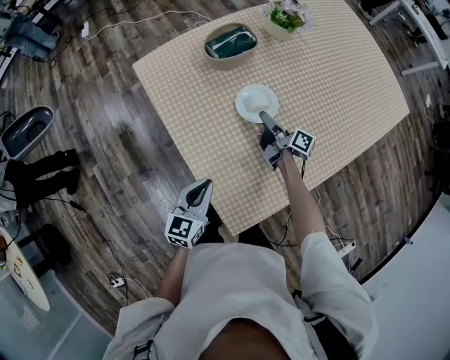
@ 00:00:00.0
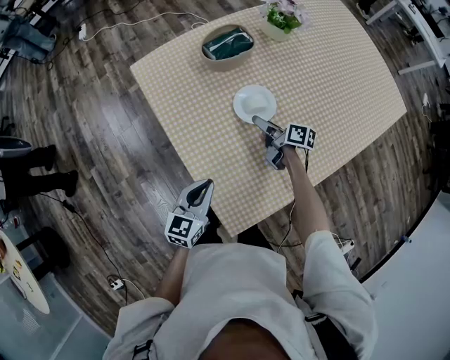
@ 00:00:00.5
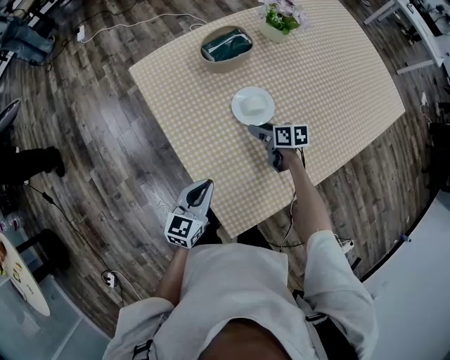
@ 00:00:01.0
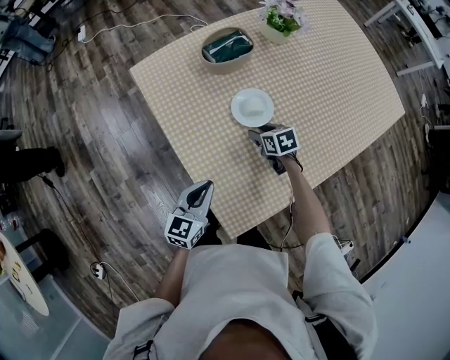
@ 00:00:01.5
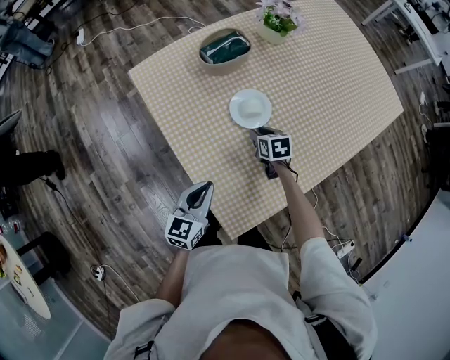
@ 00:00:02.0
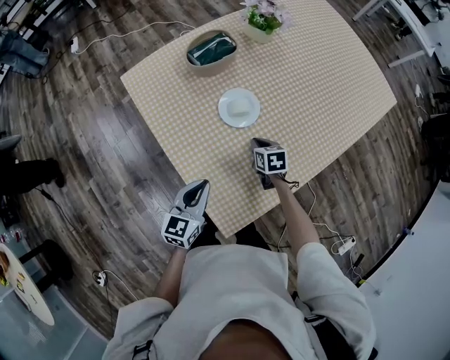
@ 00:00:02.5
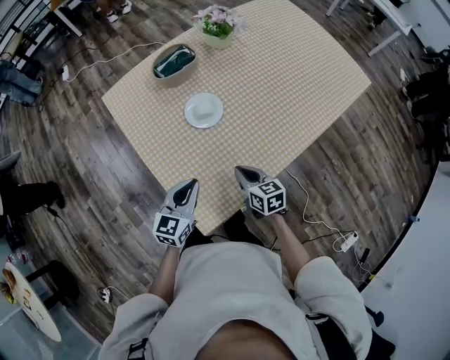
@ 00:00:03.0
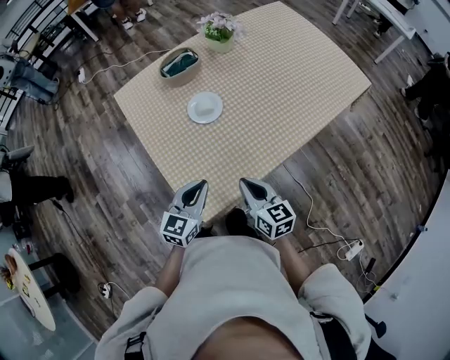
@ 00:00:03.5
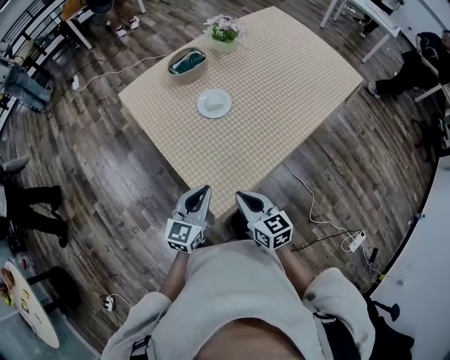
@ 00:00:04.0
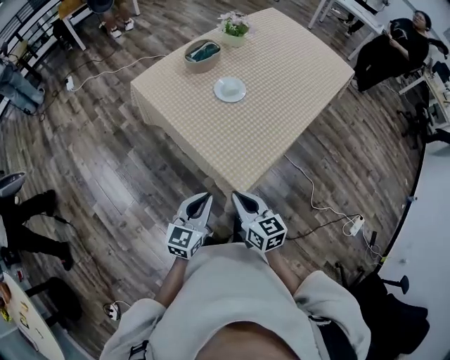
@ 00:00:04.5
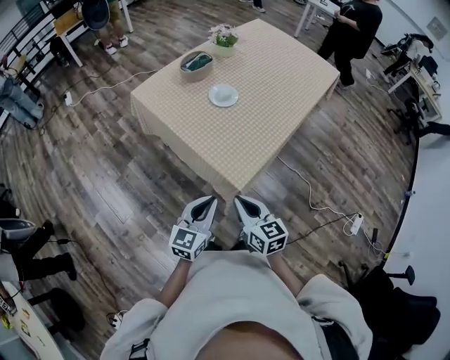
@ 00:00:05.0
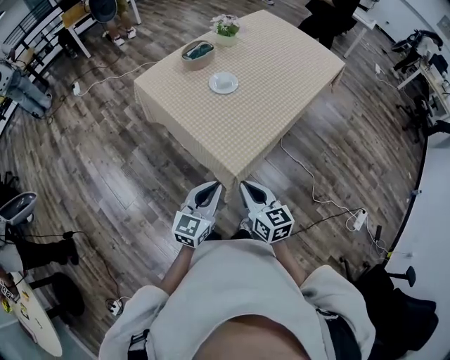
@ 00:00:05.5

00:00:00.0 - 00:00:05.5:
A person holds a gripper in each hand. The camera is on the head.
00:00:02.0 - 00:00:03.5: The left gripper moves roughly 15 cm.
00:00:03.5 - 00:00:05.5: The left gripper shifts by approximately 25 cm.

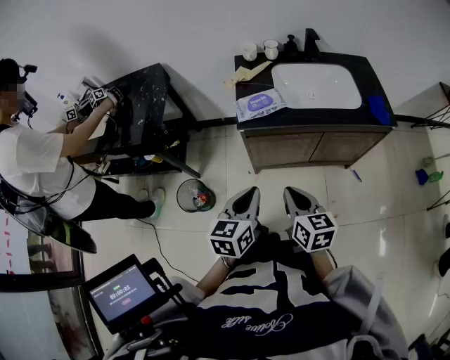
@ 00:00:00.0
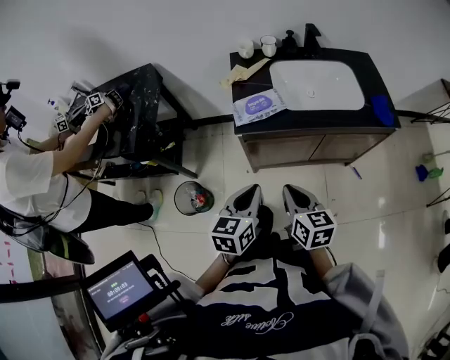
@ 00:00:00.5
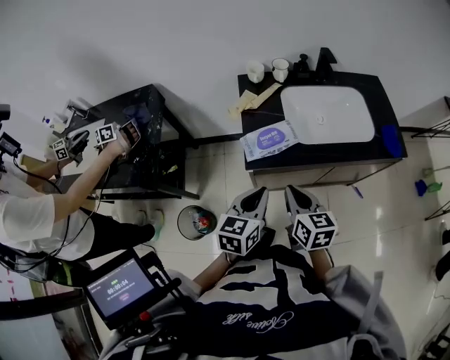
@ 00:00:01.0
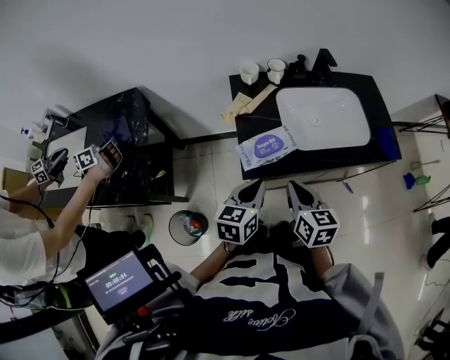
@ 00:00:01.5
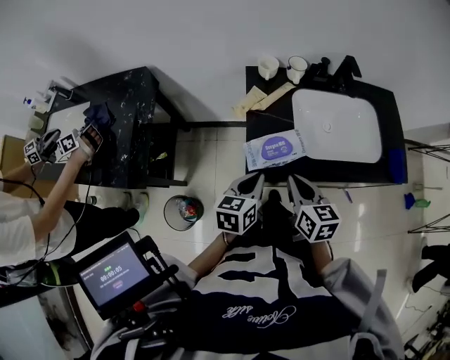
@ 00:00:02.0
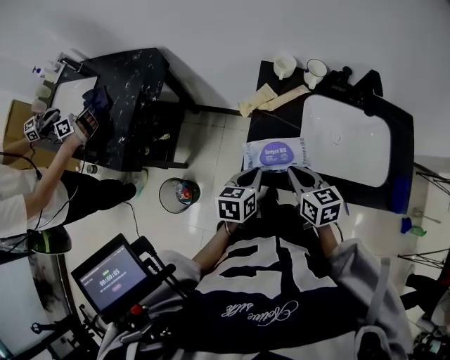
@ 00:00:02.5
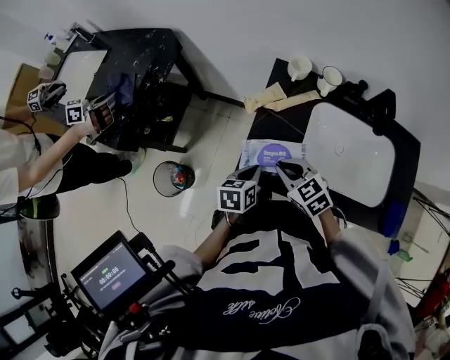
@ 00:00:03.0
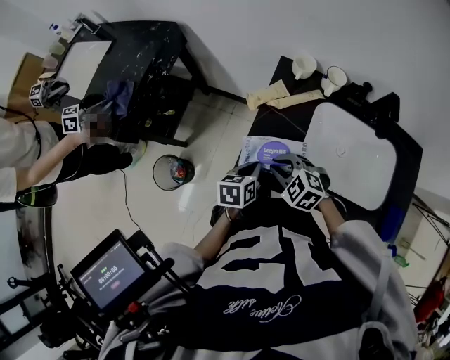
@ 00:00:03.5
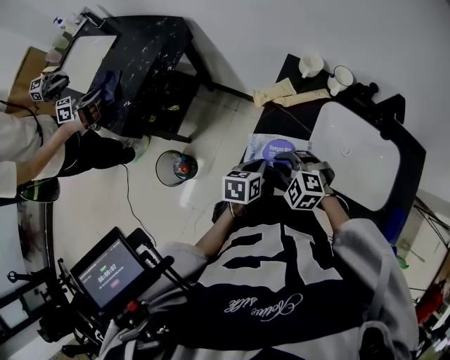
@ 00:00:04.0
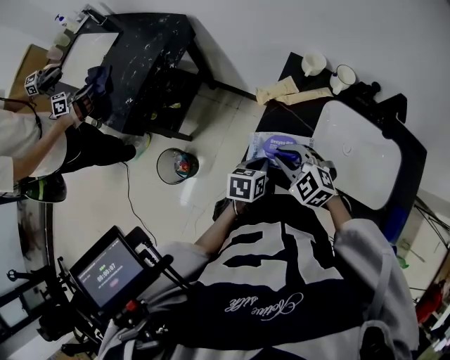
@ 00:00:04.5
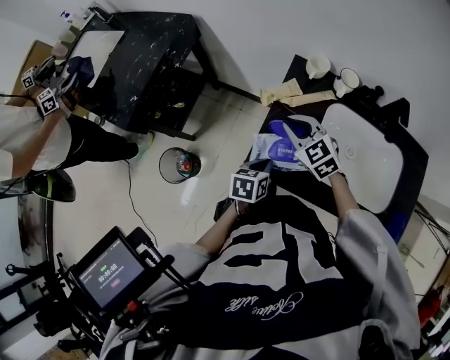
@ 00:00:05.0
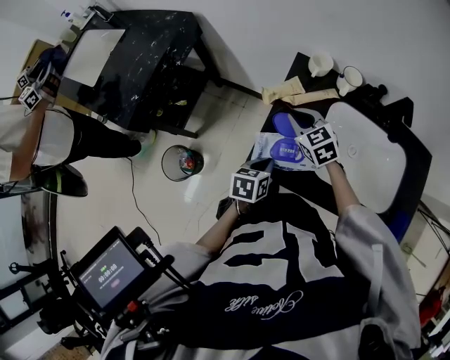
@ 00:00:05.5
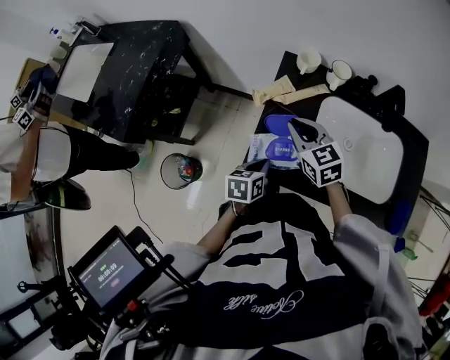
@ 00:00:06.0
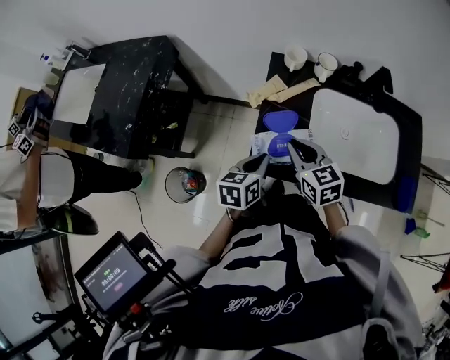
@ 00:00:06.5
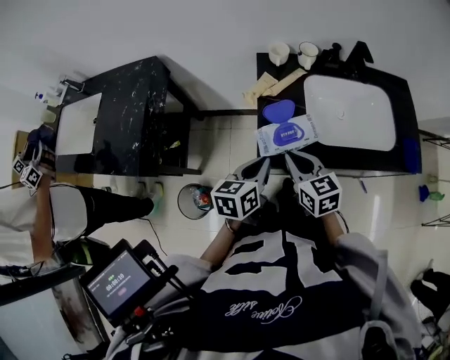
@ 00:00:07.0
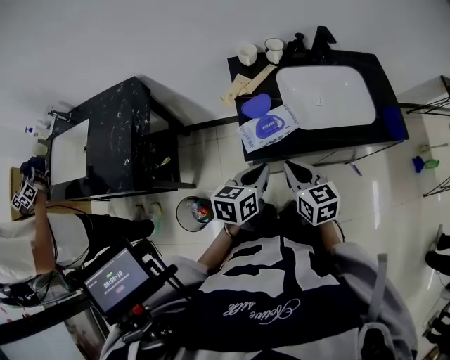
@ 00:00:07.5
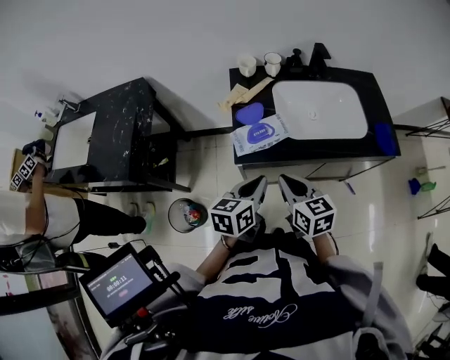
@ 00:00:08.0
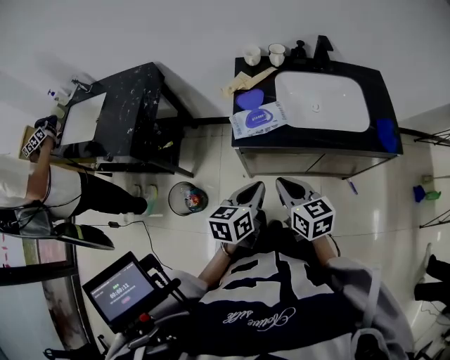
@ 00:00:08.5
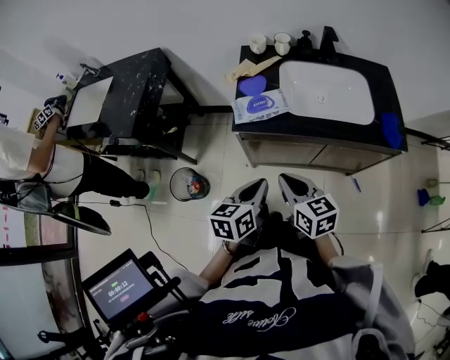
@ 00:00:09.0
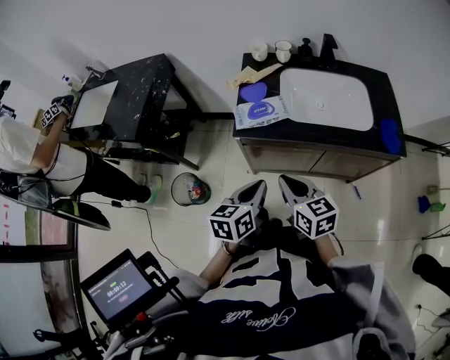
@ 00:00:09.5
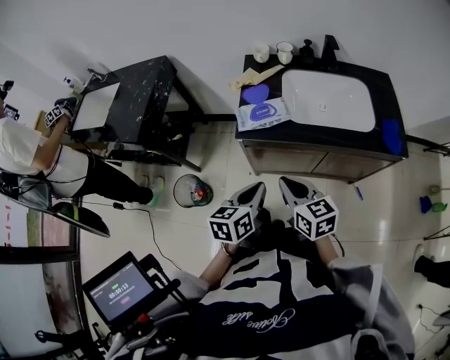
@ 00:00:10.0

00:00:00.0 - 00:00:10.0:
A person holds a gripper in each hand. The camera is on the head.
00:00:00.0 - 00:00:02.0: The grippers both shift forward by roughly 30 cm.
00:00:02.0 - 00:00:04.0: The two grippers go roughly 10 cm downward. The left gripper turns by about 30 degrees; the right gripper rotates around the line of its fingers by some 80 degrees, counterclockwise from behind.
00:00:04.0 - 00:00:06.0: The right gripper goes approximately 15 cm forward and upward, and rotates around the line of its fingers by roughly 50 degrees, clockwise from behind.
00:00:06.0 - 00:00:08.0: The left gripper shifts some 20 cm upward and backward, and turns by about 30 degrees. Meanwhile the right gripper is displaced backward by some 25 cm, and rotates about 30 degrees.
00:00:08.0 - 00:00:10.0: The two grippers go some 10 cm backward.

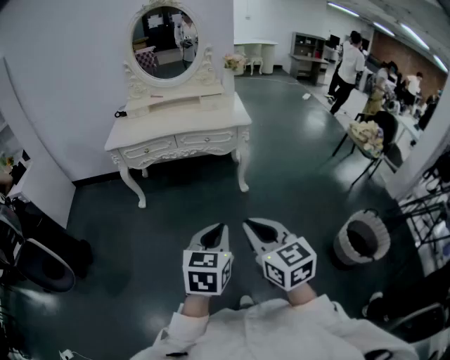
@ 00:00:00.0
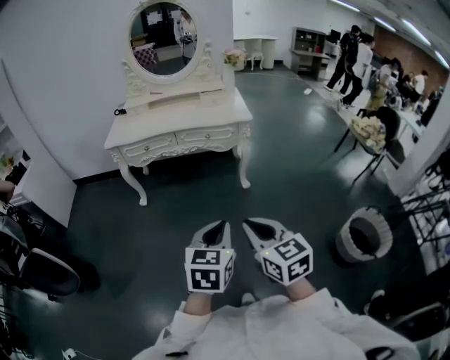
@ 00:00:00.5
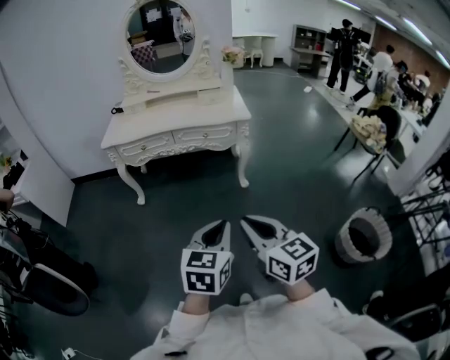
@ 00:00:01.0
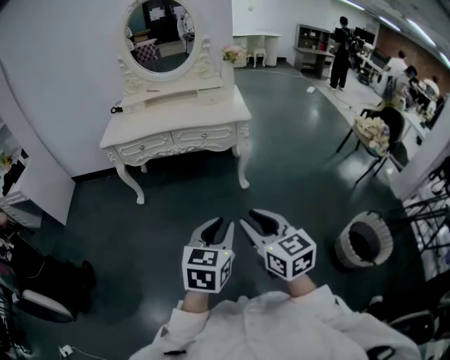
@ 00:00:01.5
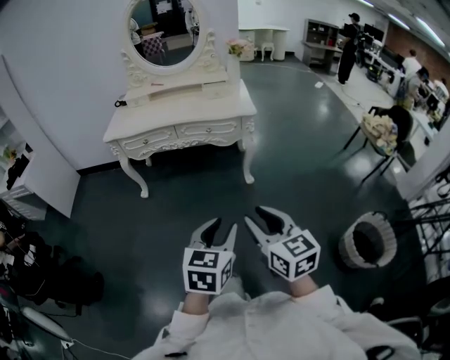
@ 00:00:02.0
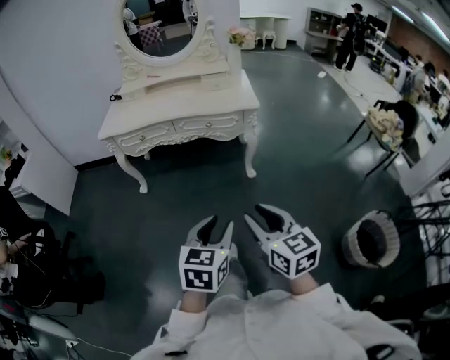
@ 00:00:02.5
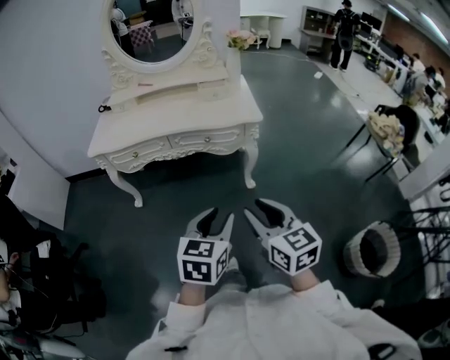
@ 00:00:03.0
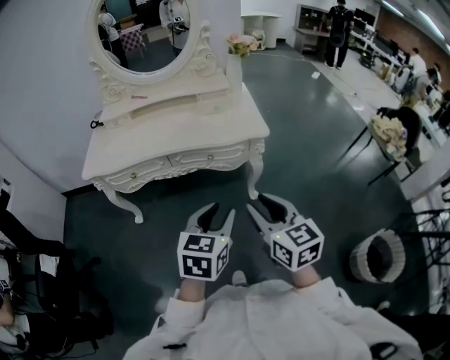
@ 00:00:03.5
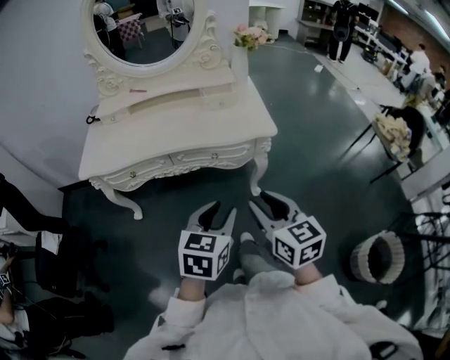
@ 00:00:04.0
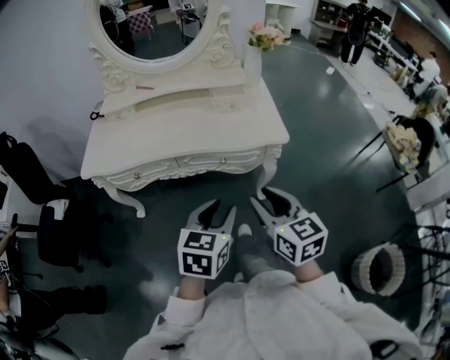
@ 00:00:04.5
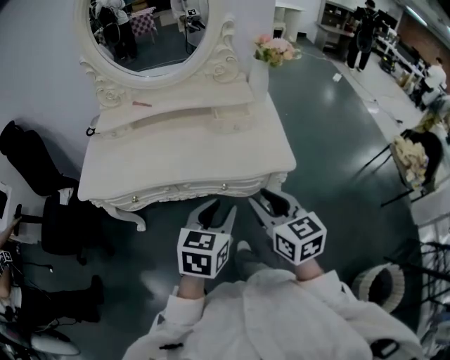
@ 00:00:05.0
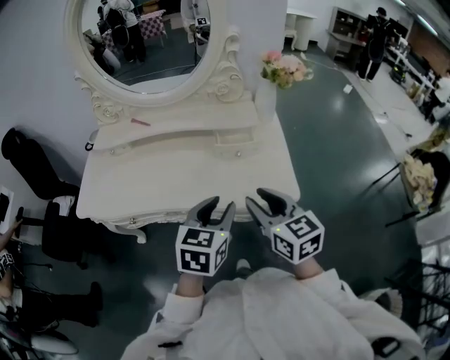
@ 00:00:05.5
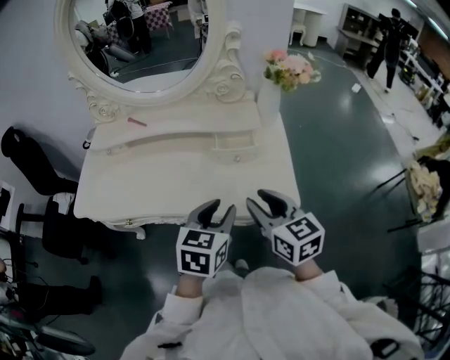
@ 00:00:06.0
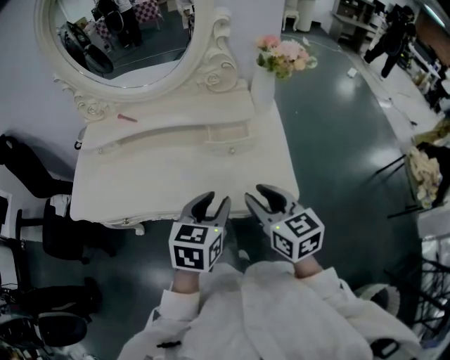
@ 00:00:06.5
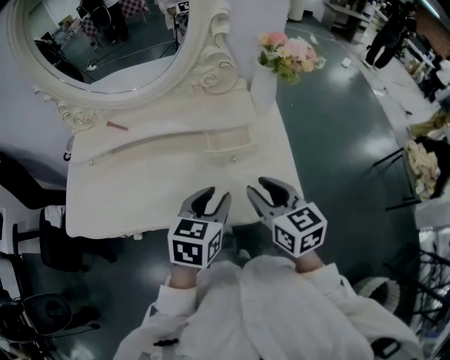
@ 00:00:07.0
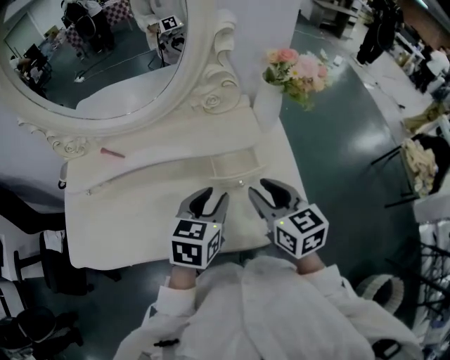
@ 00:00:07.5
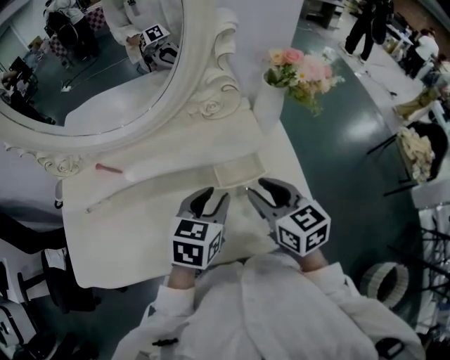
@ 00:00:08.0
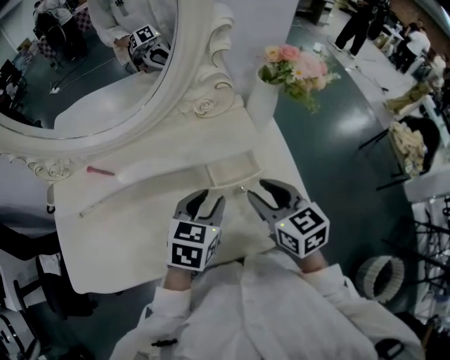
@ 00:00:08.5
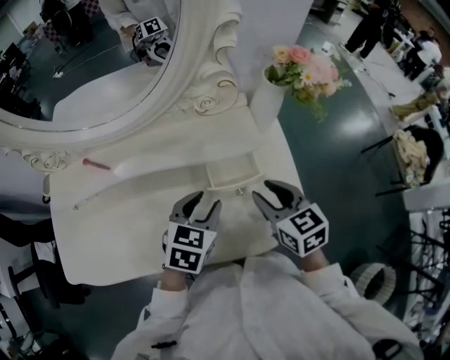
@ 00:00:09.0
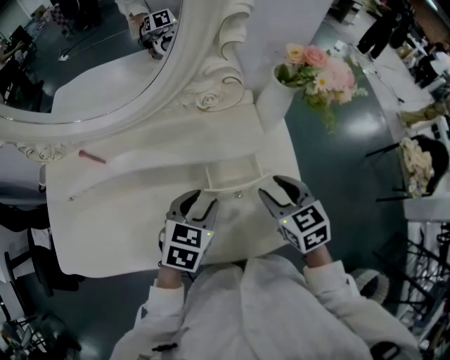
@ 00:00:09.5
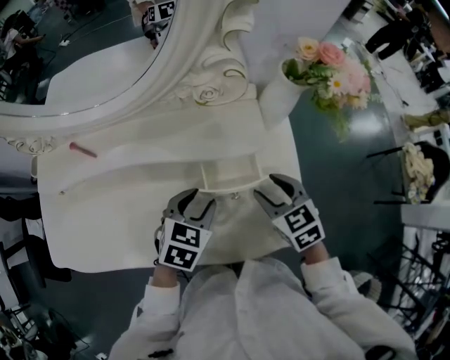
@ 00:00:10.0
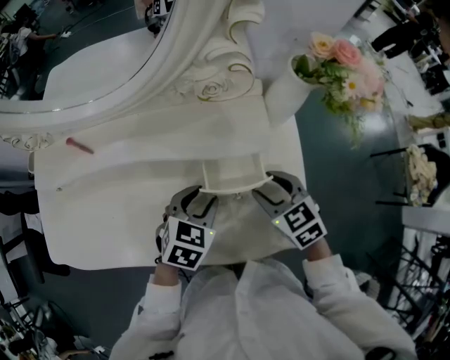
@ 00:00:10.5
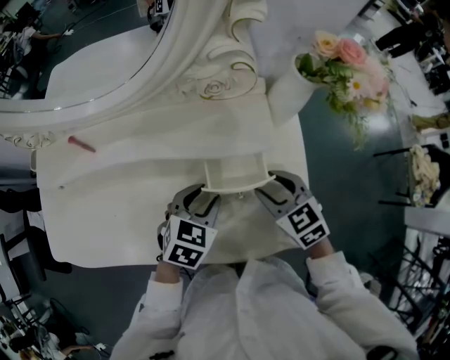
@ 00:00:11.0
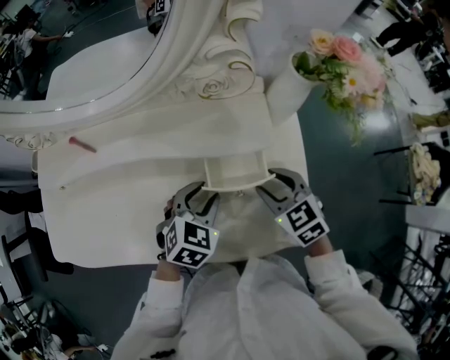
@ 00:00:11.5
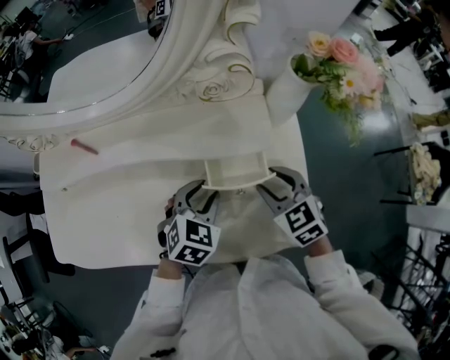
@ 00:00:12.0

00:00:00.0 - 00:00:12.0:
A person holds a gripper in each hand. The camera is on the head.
00:00:00.0 - 00:00:02.0: The right gripper is displaced forward and to the right by some 10 cm, and opens, while the left gripper travels to the right by roughly 5 cm, and opens up.
00:00:02.0 - 00:00:04.0: Both grippers move forward, roughly 35 cm.
00:00:04.0 - 00:00:06.0: The two grippers go some 35 cm forward.
00:00:06.0 - 00:00:08.0: The grippers both shift forward by roughly 20 cm.
00:00:08.0 - 00:00:10.0: The right gripper is displaced downward and to the right by some 10 cm, and rotates approximately 30 degrees. The left gripper goes roughly 10 cm downward.
00:00:10.0 - 00:00:12.0: There are only small adjustments of the grippers.
